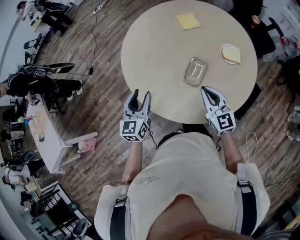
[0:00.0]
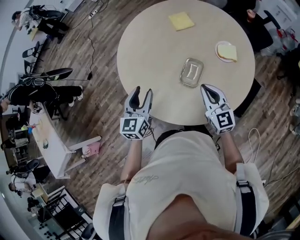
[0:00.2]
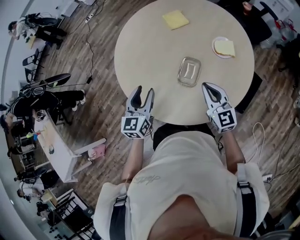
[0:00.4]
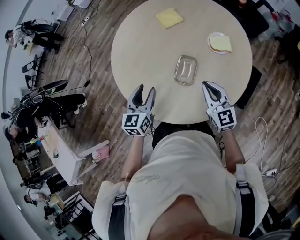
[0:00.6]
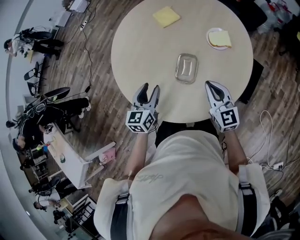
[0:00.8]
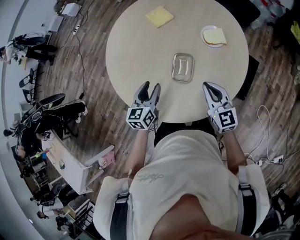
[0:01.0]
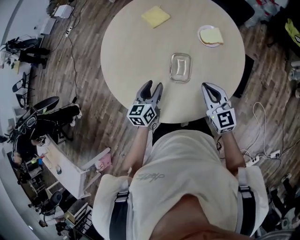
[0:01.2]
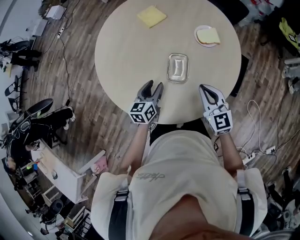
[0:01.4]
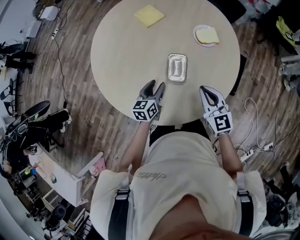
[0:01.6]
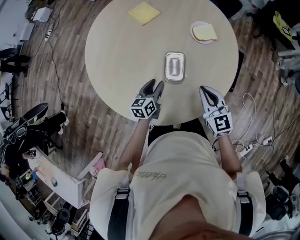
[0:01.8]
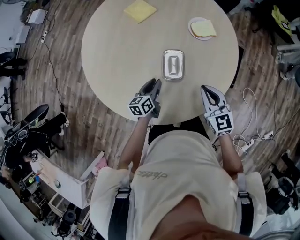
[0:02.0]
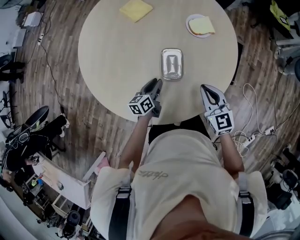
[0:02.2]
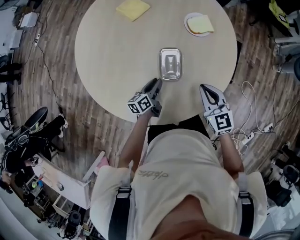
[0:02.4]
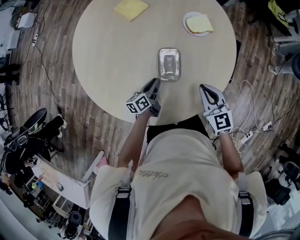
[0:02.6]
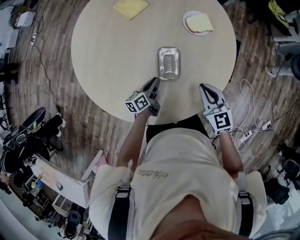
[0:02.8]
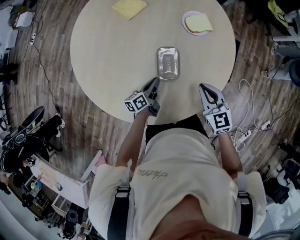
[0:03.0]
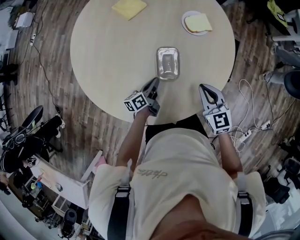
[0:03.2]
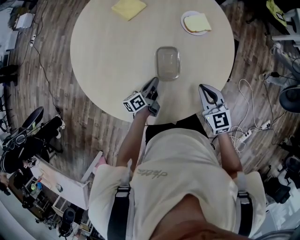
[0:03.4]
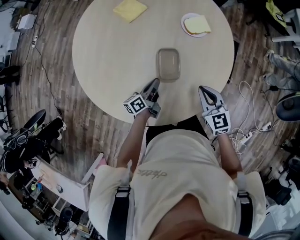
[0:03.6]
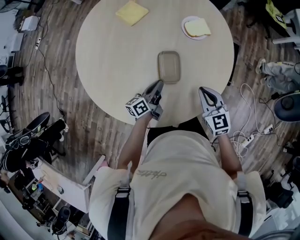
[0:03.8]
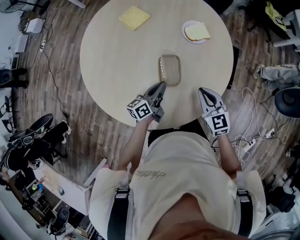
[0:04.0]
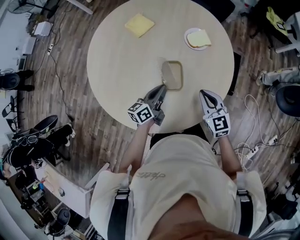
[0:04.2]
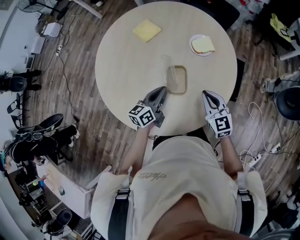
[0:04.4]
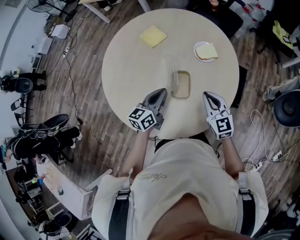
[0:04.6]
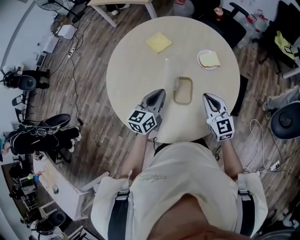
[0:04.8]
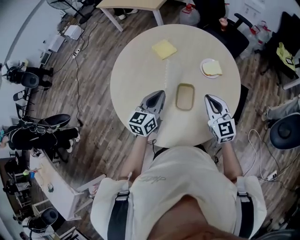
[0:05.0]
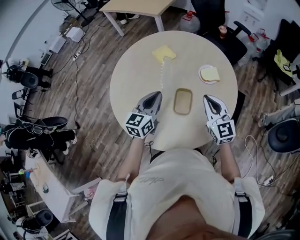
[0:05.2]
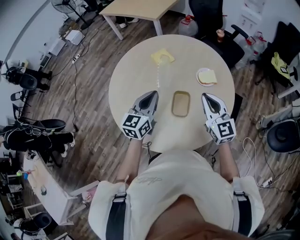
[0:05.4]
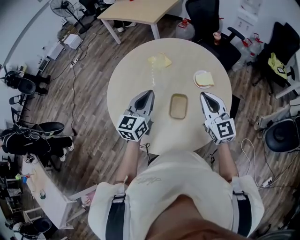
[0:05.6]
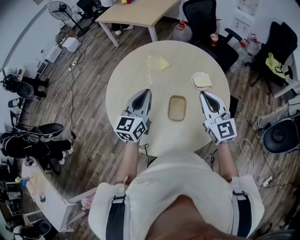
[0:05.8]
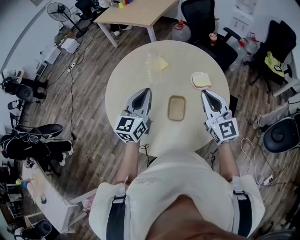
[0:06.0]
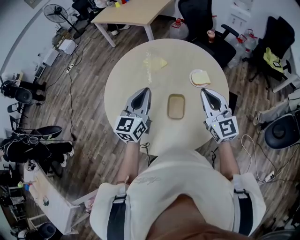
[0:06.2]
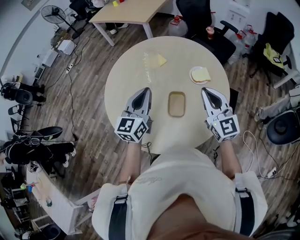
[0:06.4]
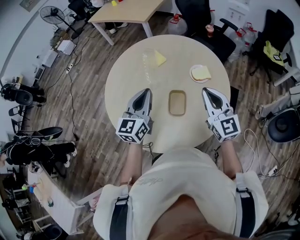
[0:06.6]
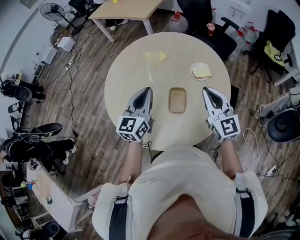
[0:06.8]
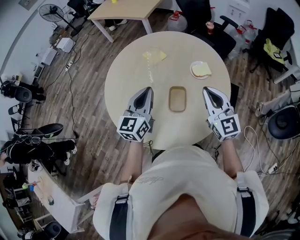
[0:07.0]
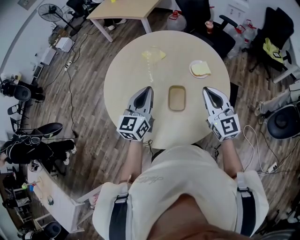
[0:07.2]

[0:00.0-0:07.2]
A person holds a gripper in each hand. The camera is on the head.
0:00.0 to 0:01.4: The right gripper ends up approximately 5 cm from where it was, and rotates about 20 degrees, while the left gripper shifts by roughly 20 cm, and changes its angle by about 30 degrees.
0:01.4 to 0:02.8: The right gripper shifts some 5 cm downward. The left gripper moves downward, roughly 15 cm, rotates about 30 degrees, and closes up.
0:02.8 to 0:04.4: The left gripper moves upward, some 15 cm, and turns by some 30 degrees.
0:04.4 to 0:05.8: The grippers both shift upward by roughly 20 cm. The right gripper swivels about 20 degrees. The left gripper rotates approximately 40 degrees.
0:05.8 to 0:07.2: There are only small adjustments of the grippers.

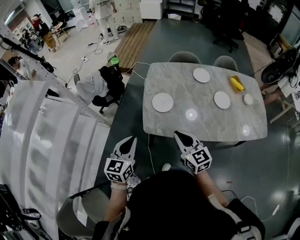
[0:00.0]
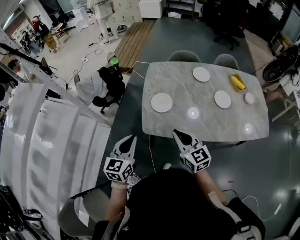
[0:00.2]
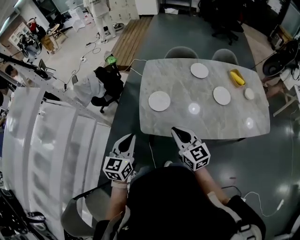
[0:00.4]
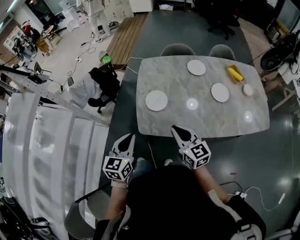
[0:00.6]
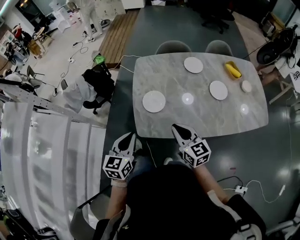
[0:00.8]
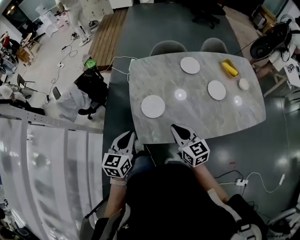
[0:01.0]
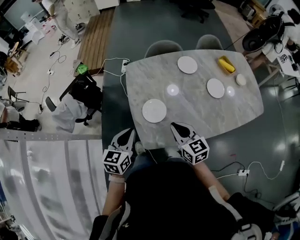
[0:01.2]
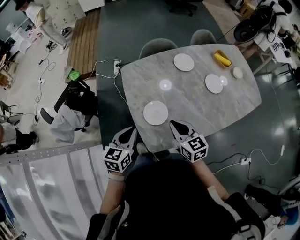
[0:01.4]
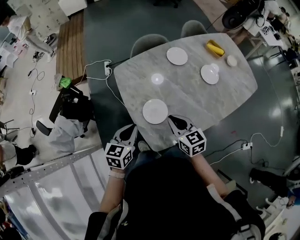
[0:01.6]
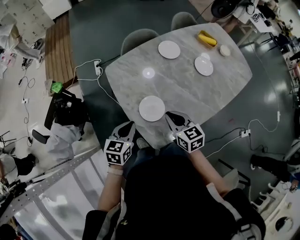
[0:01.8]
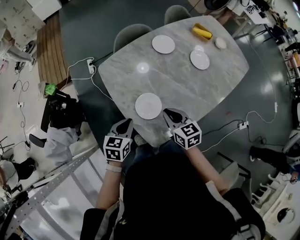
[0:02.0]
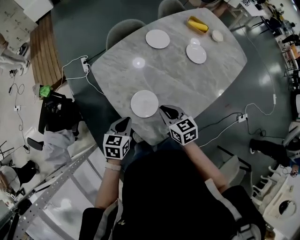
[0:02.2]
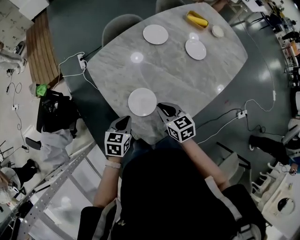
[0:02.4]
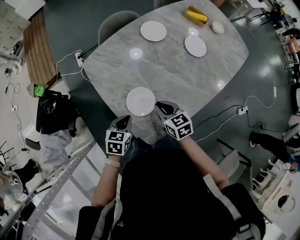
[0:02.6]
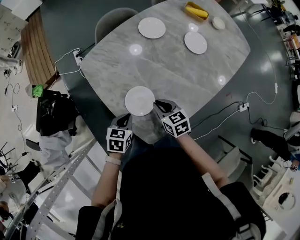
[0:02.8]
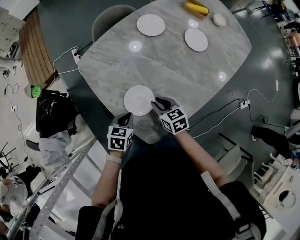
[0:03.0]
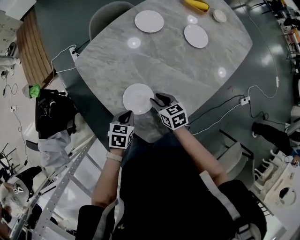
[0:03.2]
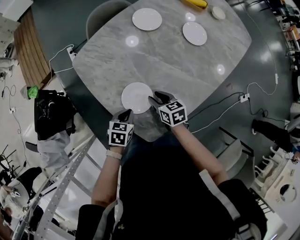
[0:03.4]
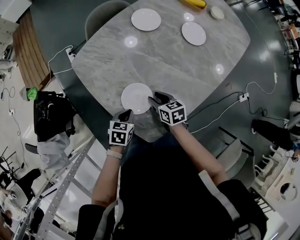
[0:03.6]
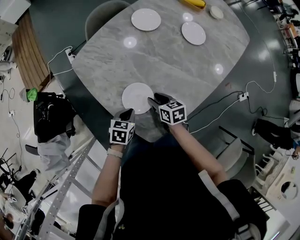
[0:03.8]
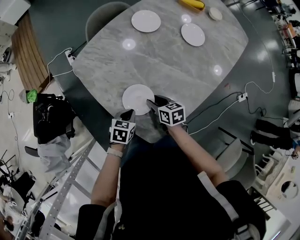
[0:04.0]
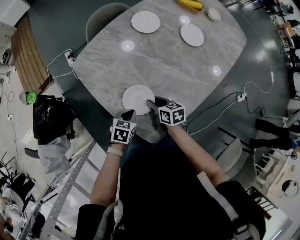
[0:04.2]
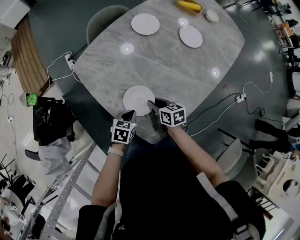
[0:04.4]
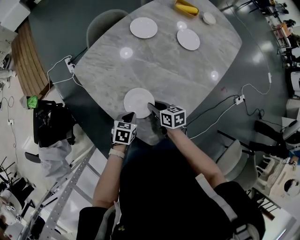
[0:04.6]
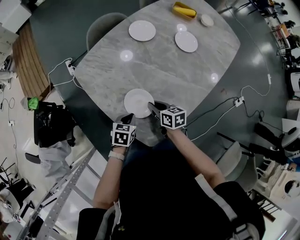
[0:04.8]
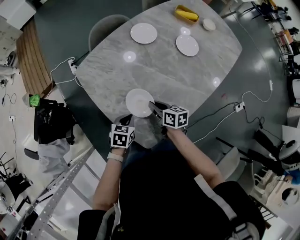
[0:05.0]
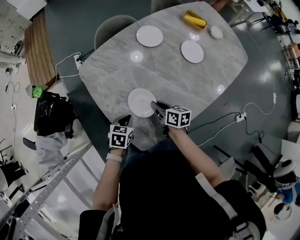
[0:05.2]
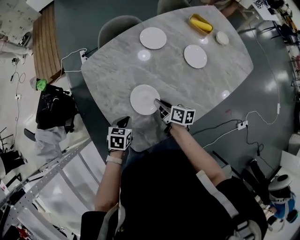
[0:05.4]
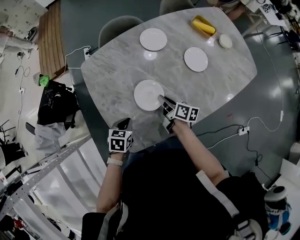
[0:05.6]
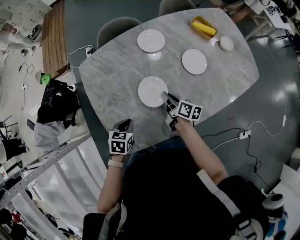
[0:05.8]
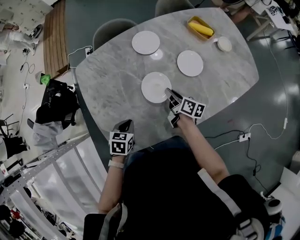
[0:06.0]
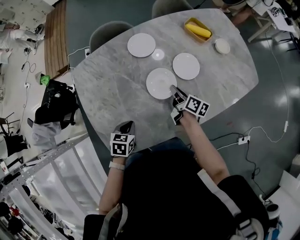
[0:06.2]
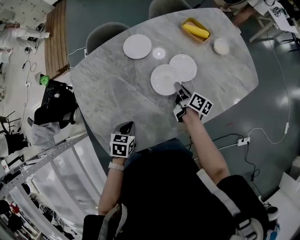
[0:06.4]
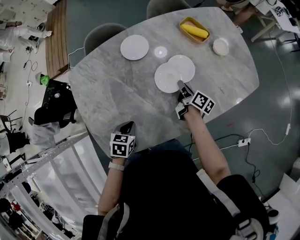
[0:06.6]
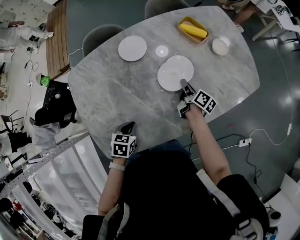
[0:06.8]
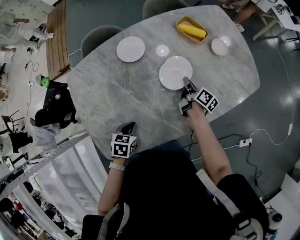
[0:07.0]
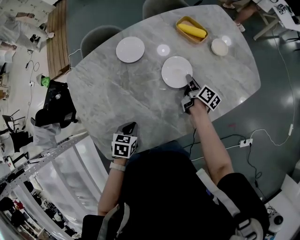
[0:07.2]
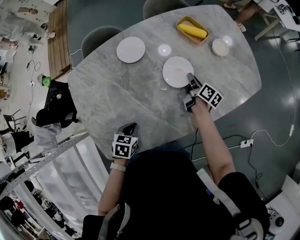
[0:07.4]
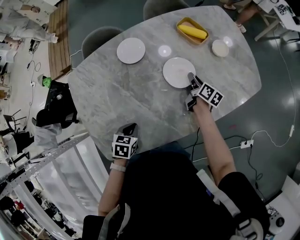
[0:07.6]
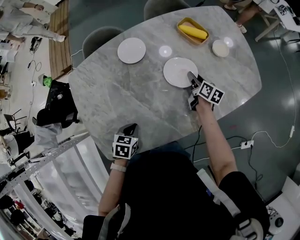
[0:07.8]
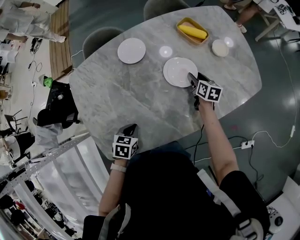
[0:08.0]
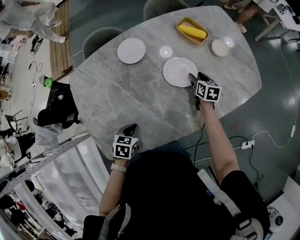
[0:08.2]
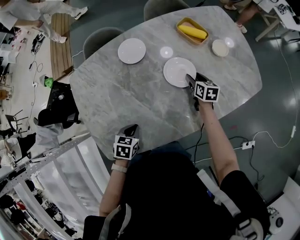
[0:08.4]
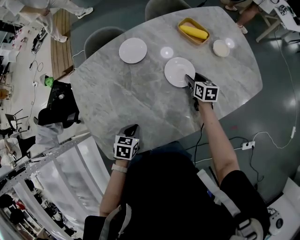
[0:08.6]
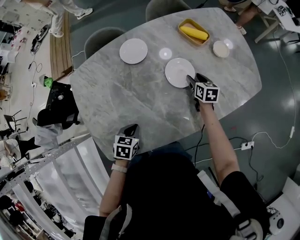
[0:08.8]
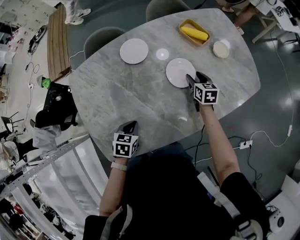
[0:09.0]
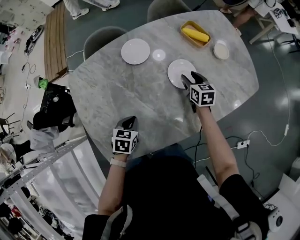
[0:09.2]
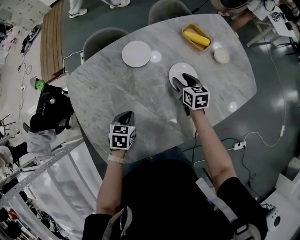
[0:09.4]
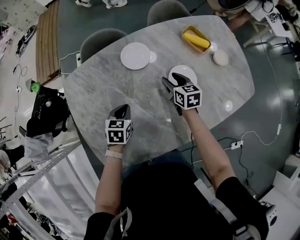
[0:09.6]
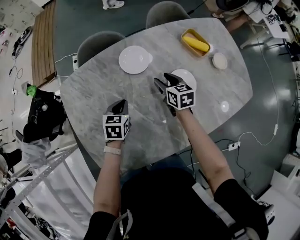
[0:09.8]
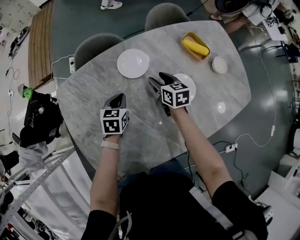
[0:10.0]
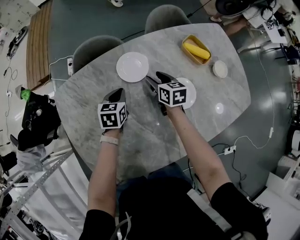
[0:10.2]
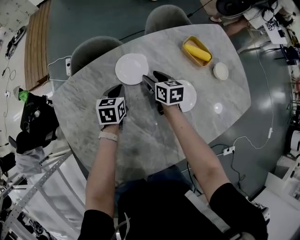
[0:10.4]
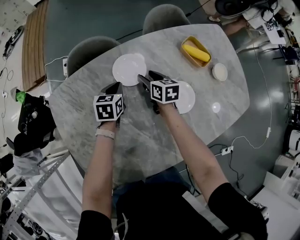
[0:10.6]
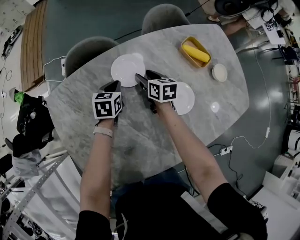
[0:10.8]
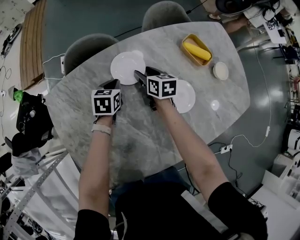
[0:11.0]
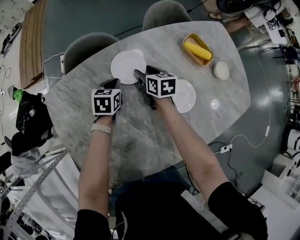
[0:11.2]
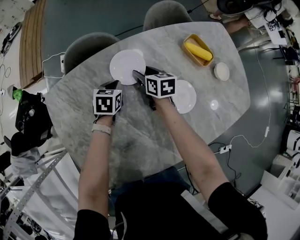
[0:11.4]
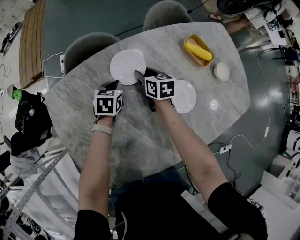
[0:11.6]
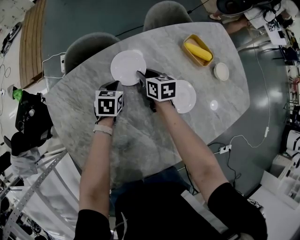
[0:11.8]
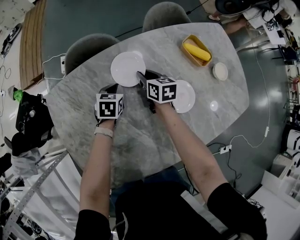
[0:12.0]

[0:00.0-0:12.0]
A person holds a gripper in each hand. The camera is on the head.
0:00.0 to 0:01.6: The right gripper ends up roughly 25 cm from where it was, and turns by some 30 degrees. Meanwhile the left gripper changes place by approximately 30 cm, and turns by about 40 degrees.
0:01.6 to 0:03.0: Both grippers travel together downward, some 15 cm. The left gripper swivels about 30 degrees. The right gripper changes its angle by about 20 degrees.
0:03.0 to 0:04.4: There are only small adjustments of the grippers.
0:04.4 to 0:06.0: The left gripper is displaced to the right and upward by about 15 cm, and turns by about 30 degrees. Meanwhile the right gripper heads to the right and forward, covering roughly 25 cm, and swivels some 30 degrees.
0:06.0 to 0:07.6: The left gripper moves to the right, roughly 10 cm, while the right gripper travels to the right and forward by some 25 cm.
0:07.6 to 0:09.0: The right gripper swivels some 40 degrees, and opens up.
0:09.0 to 0:10.4: The right gripper shifts some 25 cm to the left and forward. The left gripper goes about 30 cm forward.
0:10.4 to 0:12.0: The right gripper closes its fingers.

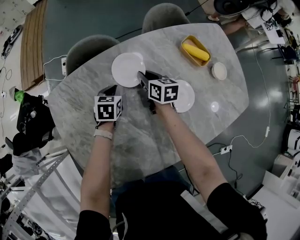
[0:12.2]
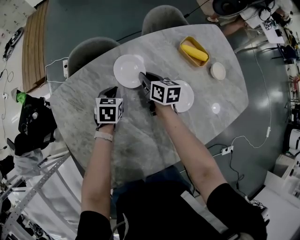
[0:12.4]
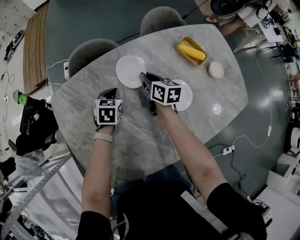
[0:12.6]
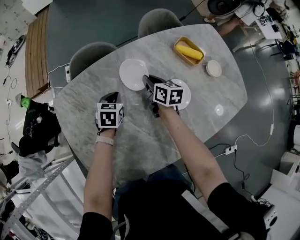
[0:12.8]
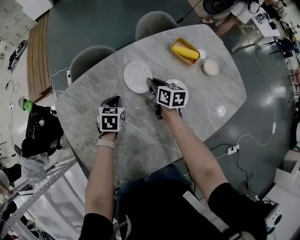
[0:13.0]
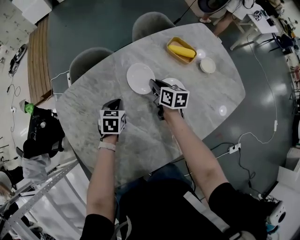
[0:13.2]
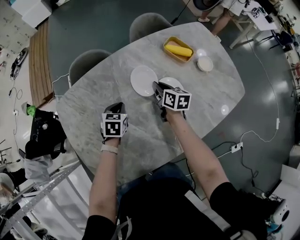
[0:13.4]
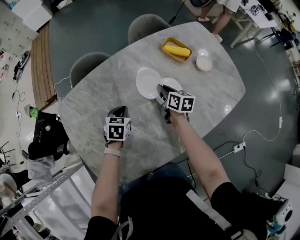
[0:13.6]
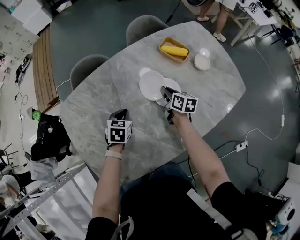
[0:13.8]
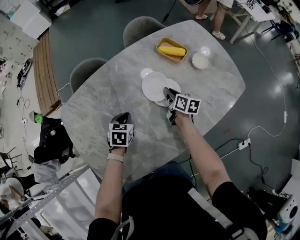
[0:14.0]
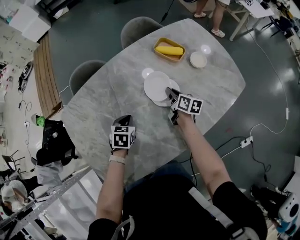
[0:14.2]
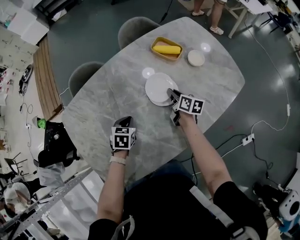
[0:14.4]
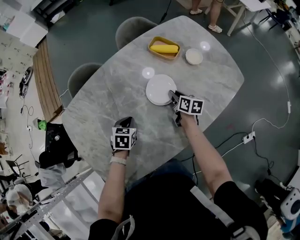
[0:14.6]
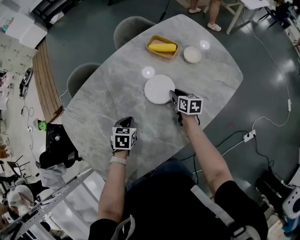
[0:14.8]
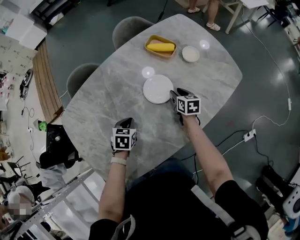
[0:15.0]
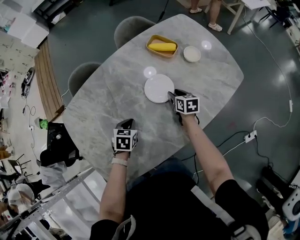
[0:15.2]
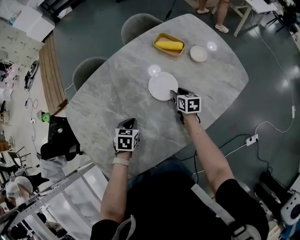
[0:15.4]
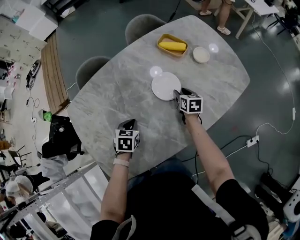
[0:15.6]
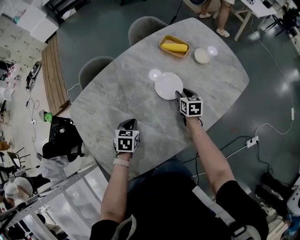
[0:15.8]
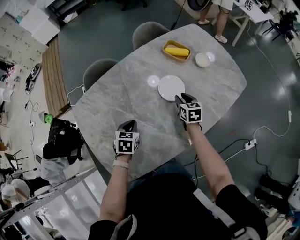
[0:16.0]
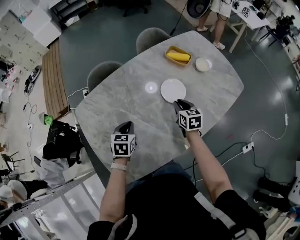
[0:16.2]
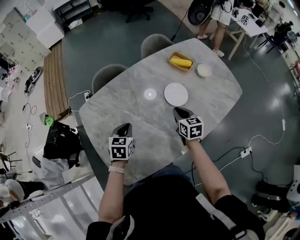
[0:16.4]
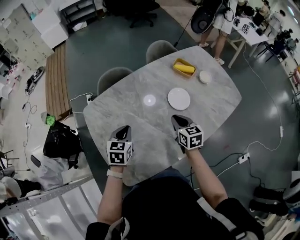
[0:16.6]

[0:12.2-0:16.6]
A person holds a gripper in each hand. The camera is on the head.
0:12.2 to 0:13.6: The left gripper moves backward, to the right and upward, about 15 cm; the right gripper goes about 15 cm to the right and backward.
0:13.6 to 0:15.2: The left gripper travels backward and to the right by roughly 10 cm. Meanwhile the right gripper moves to the right, backward and downward, approximately 15 cm, and opens.
0:15.2 to 0:16.6: The left gripper is displaced to the left and upward by about 20 cm, and turns by roughly 20 degrees. Meanwhile the right gripper moves upward, to the left and backward, some 30 cm, changes its angle by roughly 20 degrees, and closes.
